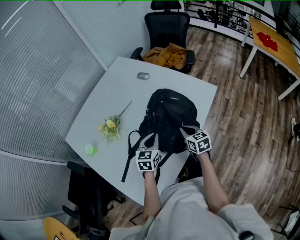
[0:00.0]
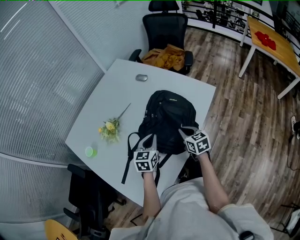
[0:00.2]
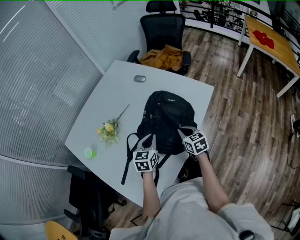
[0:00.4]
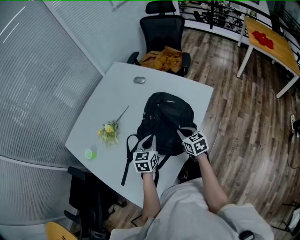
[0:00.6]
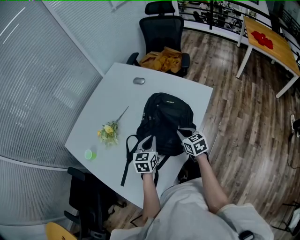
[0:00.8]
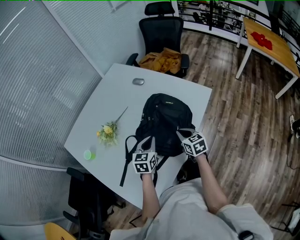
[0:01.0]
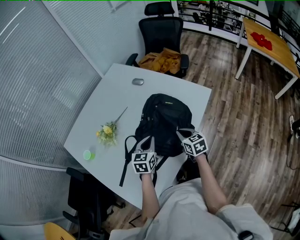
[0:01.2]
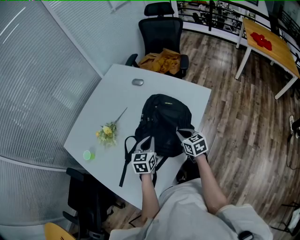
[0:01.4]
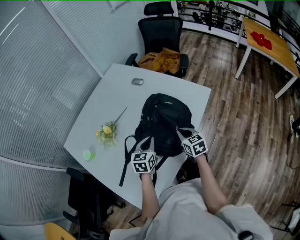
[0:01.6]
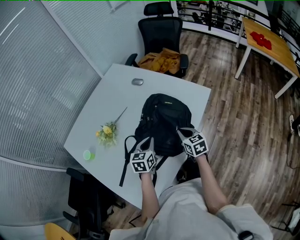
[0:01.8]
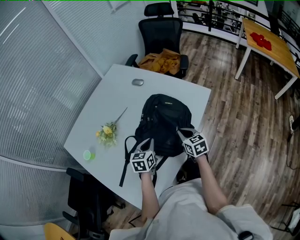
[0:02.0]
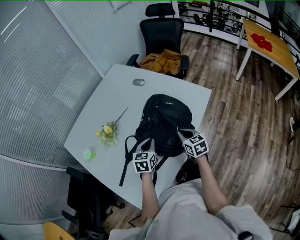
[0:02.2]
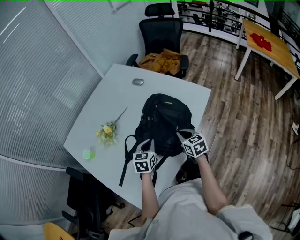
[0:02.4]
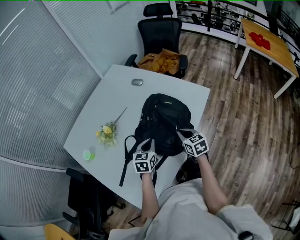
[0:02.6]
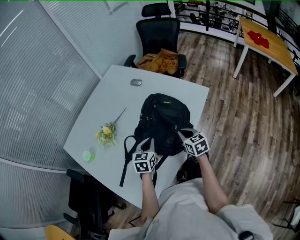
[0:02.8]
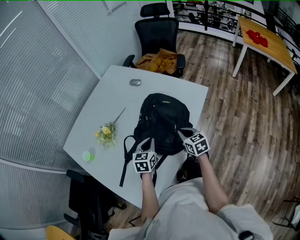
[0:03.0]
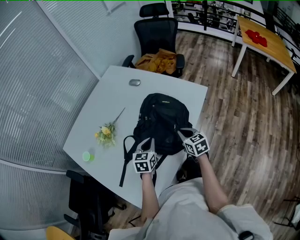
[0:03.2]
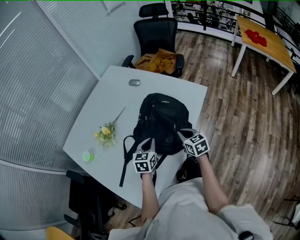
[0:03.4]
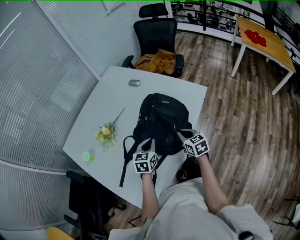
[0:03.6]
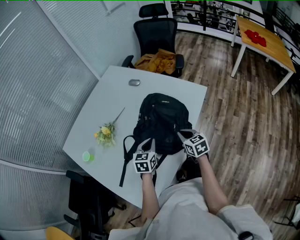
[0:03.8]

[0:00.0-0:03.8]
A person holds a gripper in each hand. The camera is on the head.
0:00.0 to 0:01.2: The two grippers keep their place.
0:01.2 to 0:03.8: The grippers move only a little.

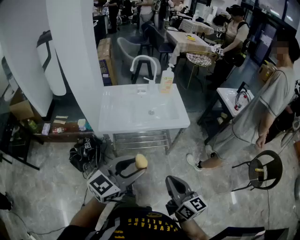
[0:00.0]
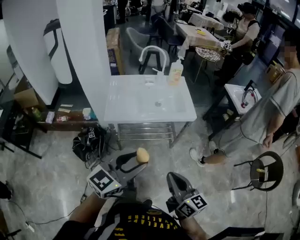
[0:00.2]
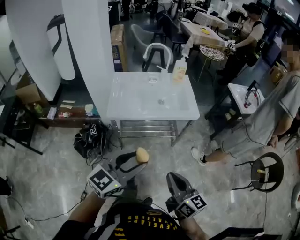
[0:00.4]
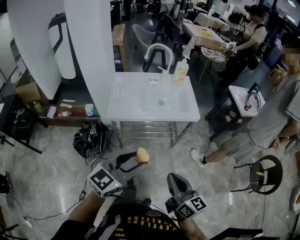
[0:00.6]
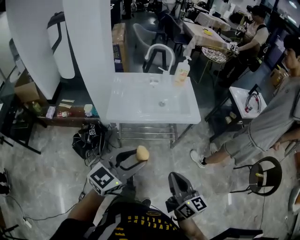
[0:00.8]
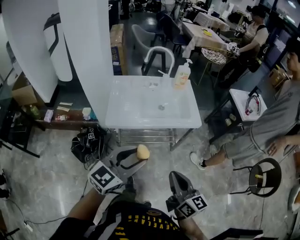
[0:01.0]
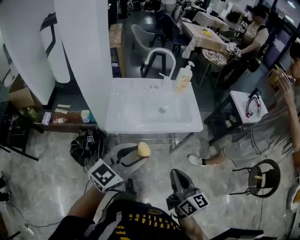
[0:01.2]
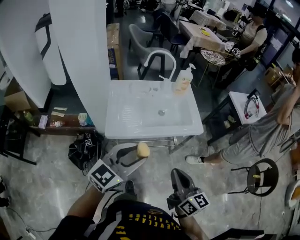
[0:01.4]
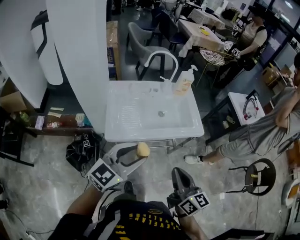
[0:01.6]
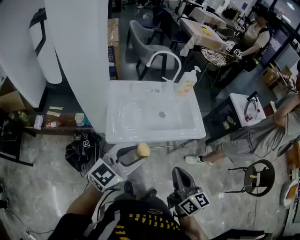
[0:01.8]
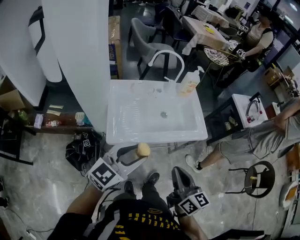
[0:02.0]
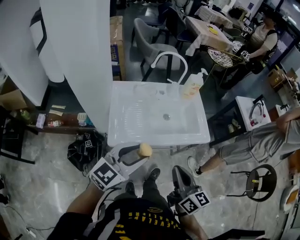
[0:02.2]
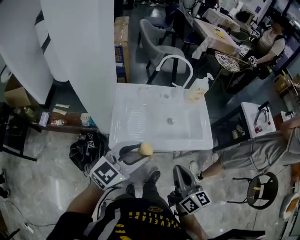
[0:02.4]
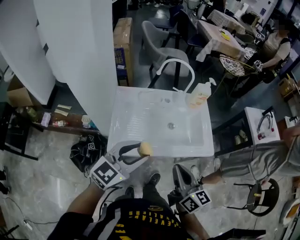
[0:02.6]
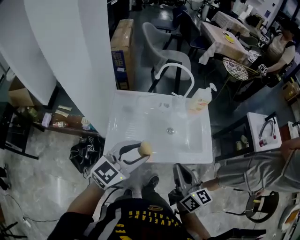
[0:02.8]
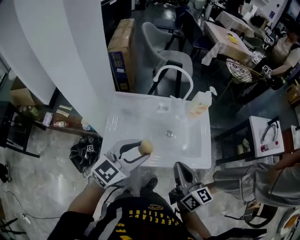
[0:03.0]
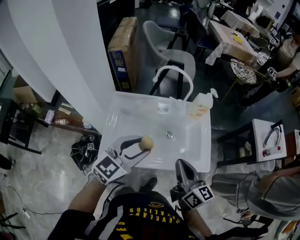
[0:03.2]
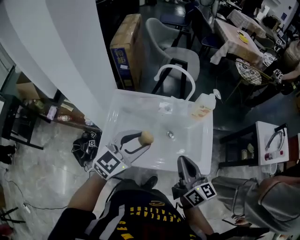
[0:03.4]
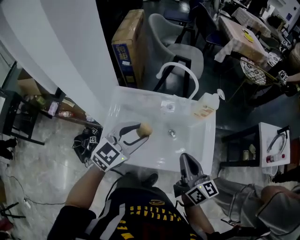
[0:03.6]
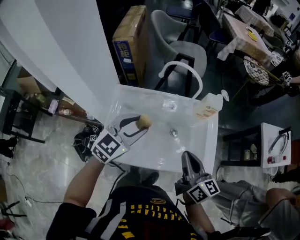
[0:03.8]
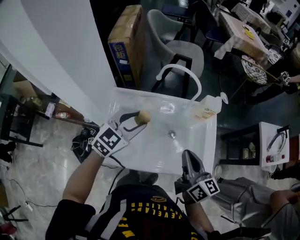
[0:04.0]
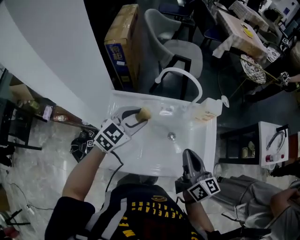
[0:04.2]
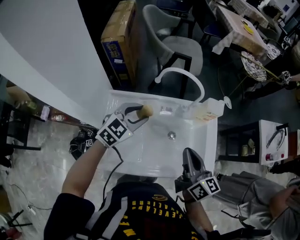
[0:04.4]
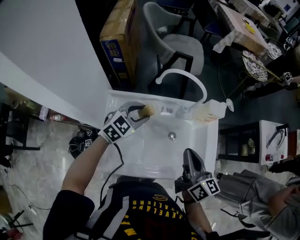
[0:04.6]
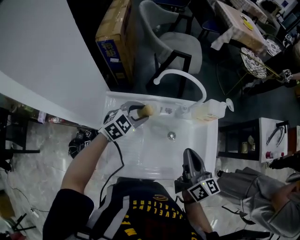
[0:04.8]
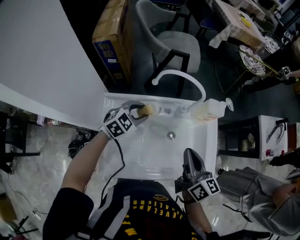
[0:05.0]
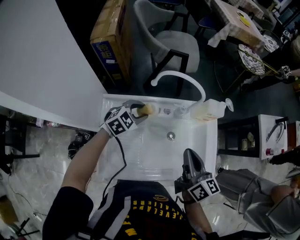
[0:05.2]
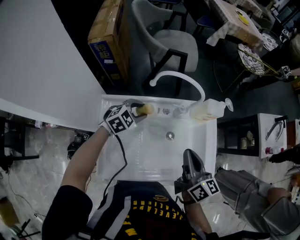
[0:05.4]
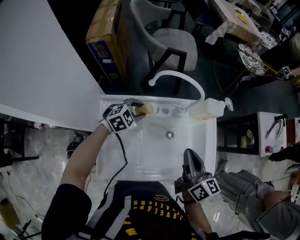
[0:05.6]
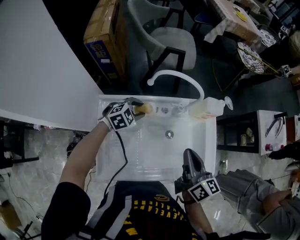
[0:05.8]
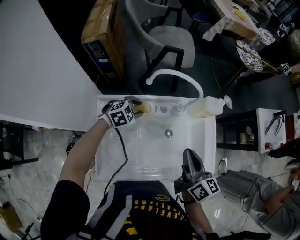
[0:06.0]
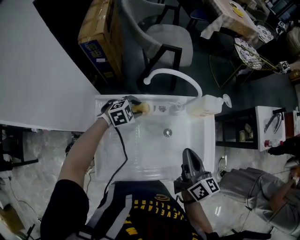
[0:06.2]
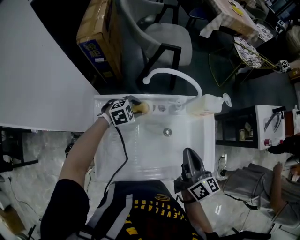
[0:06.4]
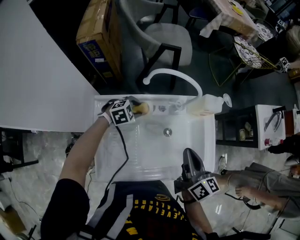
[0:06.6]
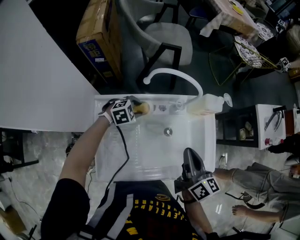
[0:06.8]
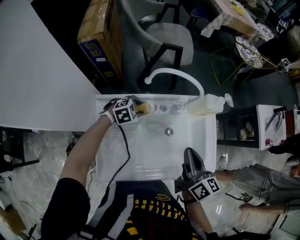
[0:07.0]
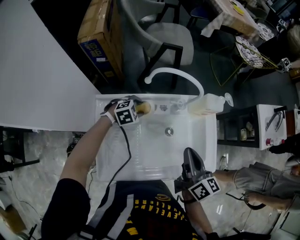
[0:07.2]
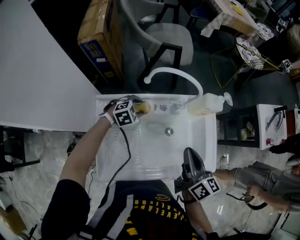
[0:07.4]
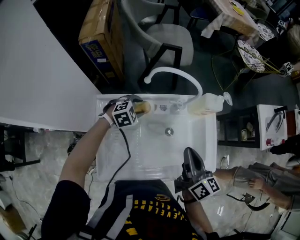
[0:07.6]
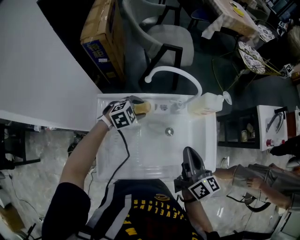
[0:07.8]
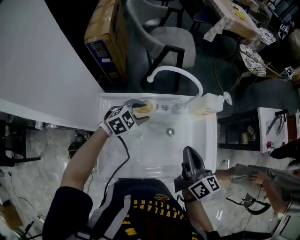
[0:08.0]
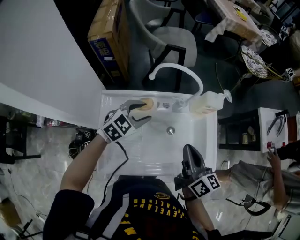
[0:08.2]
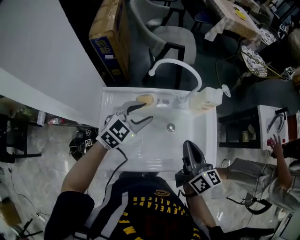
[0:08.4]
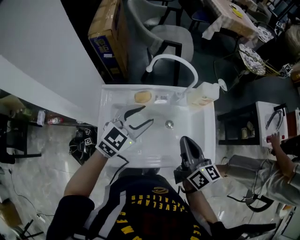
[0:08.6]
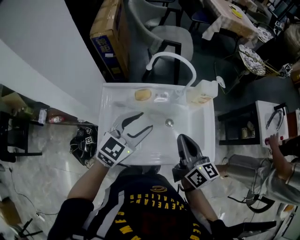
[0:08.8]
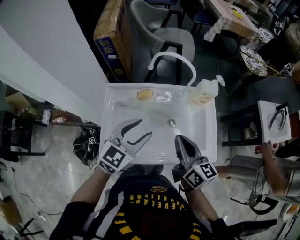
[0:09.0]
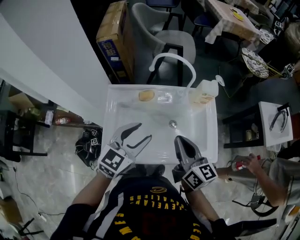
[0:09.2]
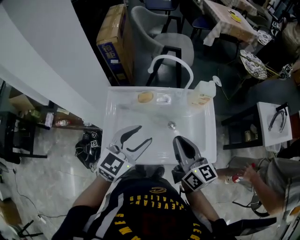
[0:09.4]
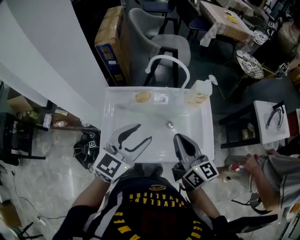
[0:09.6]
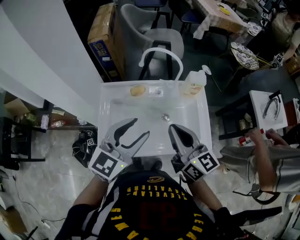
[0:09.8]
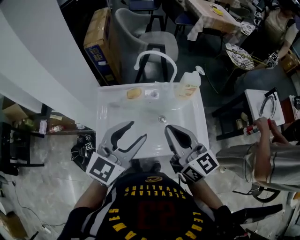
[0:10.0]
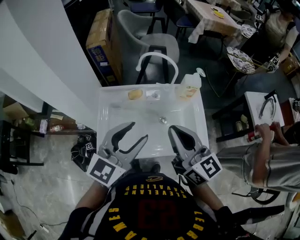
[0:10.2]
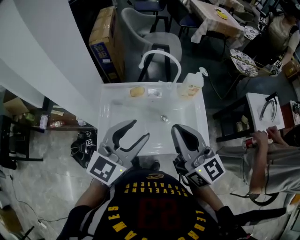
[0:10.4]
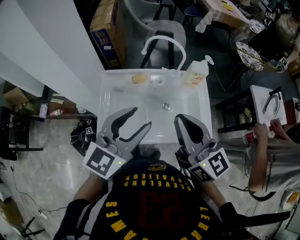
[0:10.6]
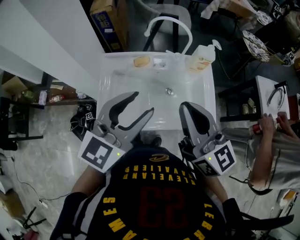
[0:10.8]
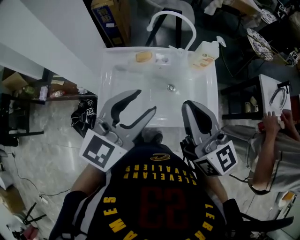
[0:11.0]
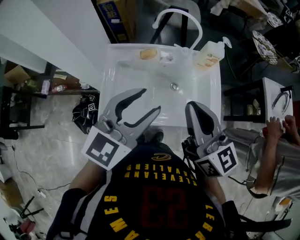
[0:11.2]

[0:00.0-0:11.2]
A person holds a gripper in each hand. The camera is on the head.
0:00.0 to 0:01.6: Both grippers travel together forward and to the left, about 20 cm.
0:01.6 to 0:03.2: Both grippers move forward, about 25 cm.
0:03.2 to 0:04.8: The right gripper heads forward, covering roughly 15 cm; the left gripper goes about 30 cm forward and downward, and changes its angle by roughly 30 degrees.
0:04.8 to 0:06.4: The left gripper moves downward, some 10 cm, and rotates about 20 degrees.
0:06.4 to 0:08.0: The left gripper goes some 10 cm upward.
0:08.0 to 0:09.6: The right gripper travels backward and upward by approximately 10 cm. Meanwhile the left gripper is displaced upward and backward by roughly 30 cm, and tilts its fingers about 30 degrees upward.
0:09.6 to 0:11.2: The left gripper moves roughly 5 cm; the right gripper goes some 10 cm upward.

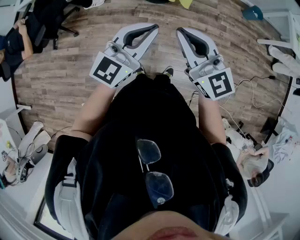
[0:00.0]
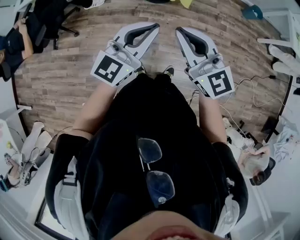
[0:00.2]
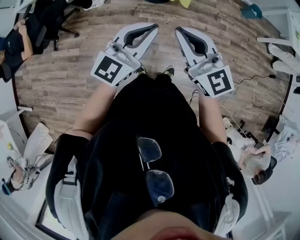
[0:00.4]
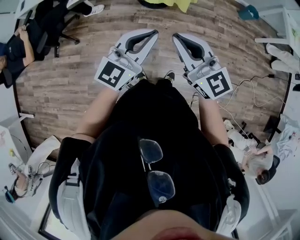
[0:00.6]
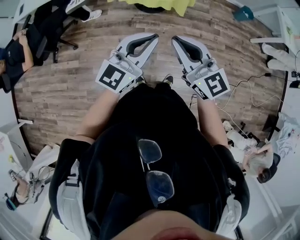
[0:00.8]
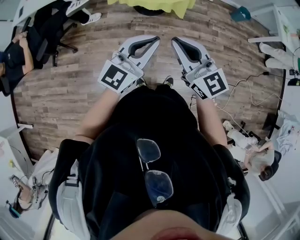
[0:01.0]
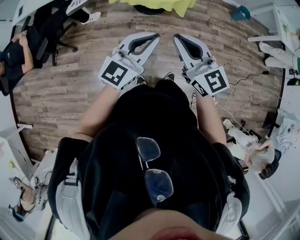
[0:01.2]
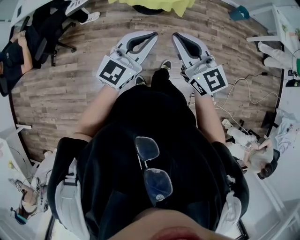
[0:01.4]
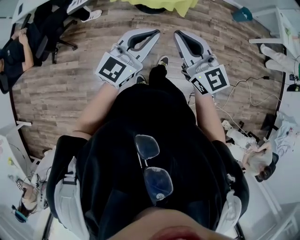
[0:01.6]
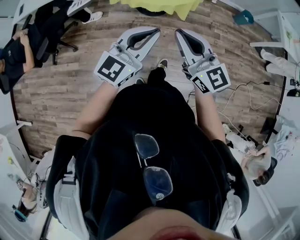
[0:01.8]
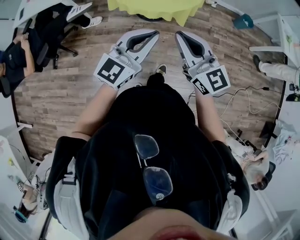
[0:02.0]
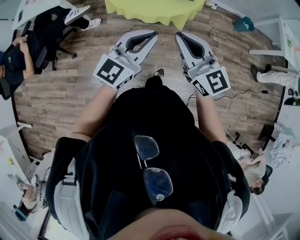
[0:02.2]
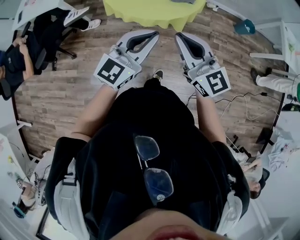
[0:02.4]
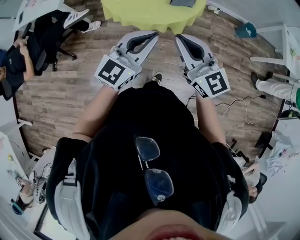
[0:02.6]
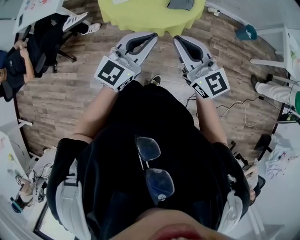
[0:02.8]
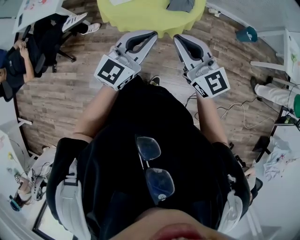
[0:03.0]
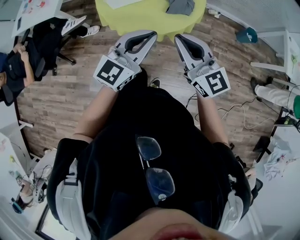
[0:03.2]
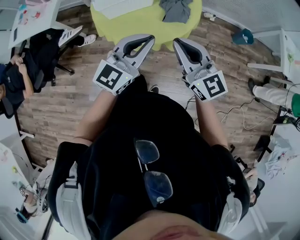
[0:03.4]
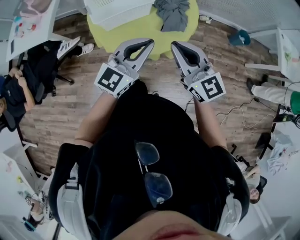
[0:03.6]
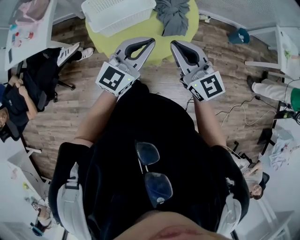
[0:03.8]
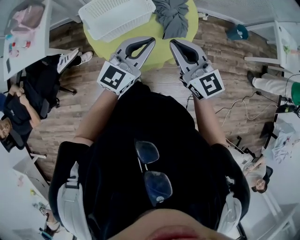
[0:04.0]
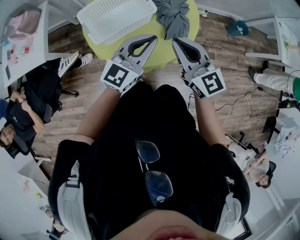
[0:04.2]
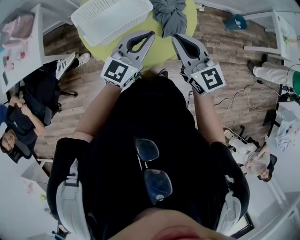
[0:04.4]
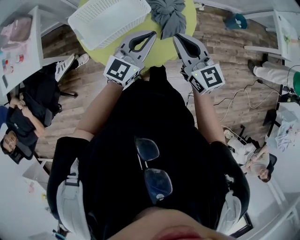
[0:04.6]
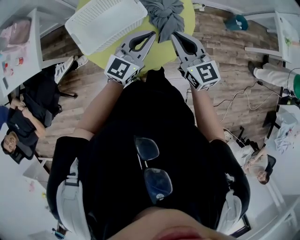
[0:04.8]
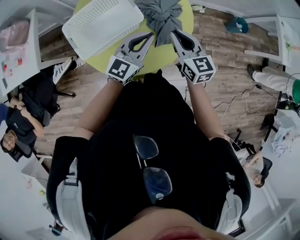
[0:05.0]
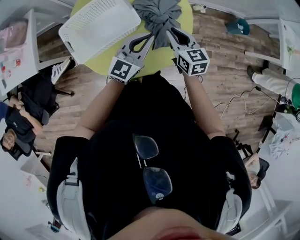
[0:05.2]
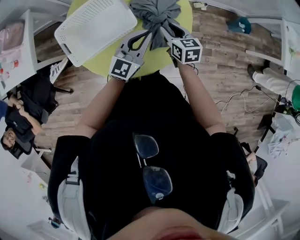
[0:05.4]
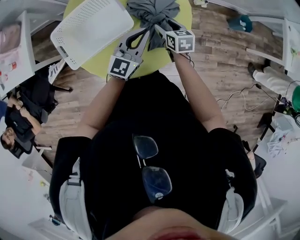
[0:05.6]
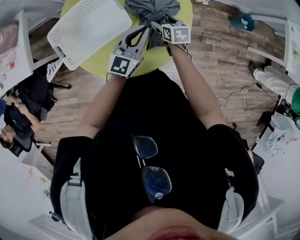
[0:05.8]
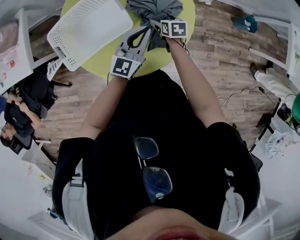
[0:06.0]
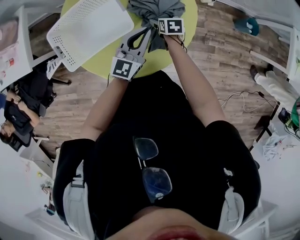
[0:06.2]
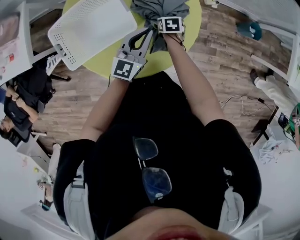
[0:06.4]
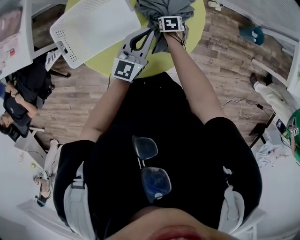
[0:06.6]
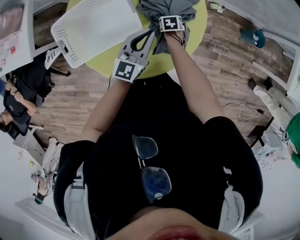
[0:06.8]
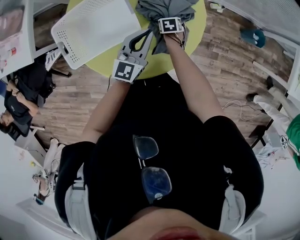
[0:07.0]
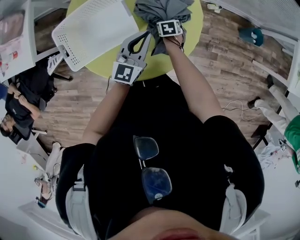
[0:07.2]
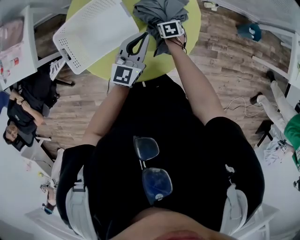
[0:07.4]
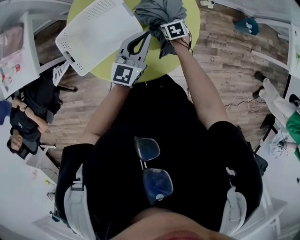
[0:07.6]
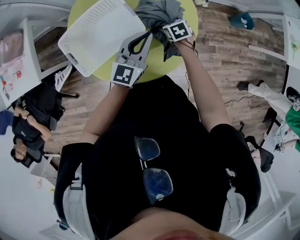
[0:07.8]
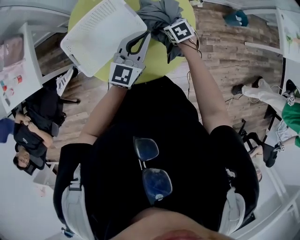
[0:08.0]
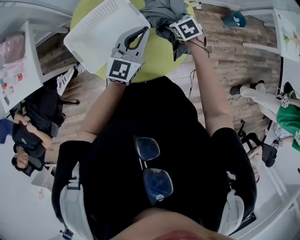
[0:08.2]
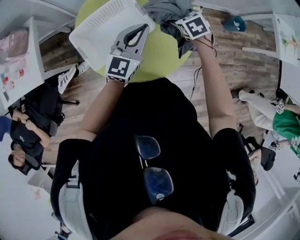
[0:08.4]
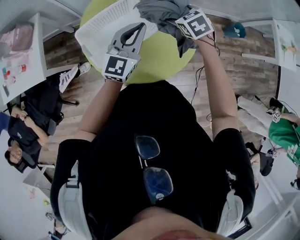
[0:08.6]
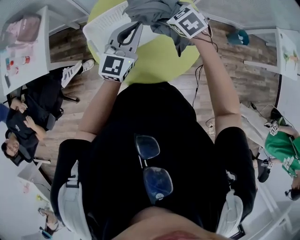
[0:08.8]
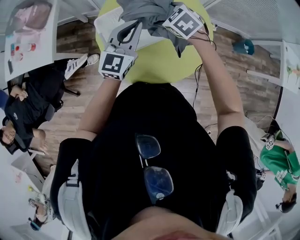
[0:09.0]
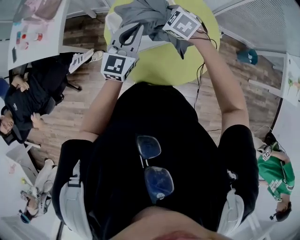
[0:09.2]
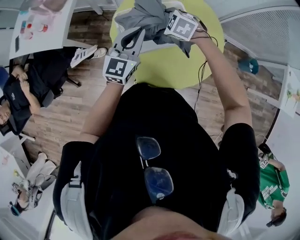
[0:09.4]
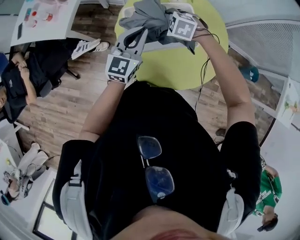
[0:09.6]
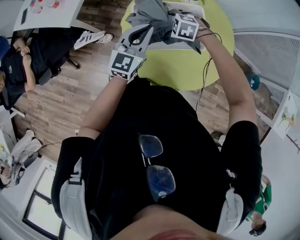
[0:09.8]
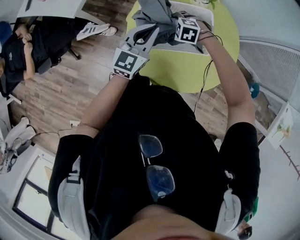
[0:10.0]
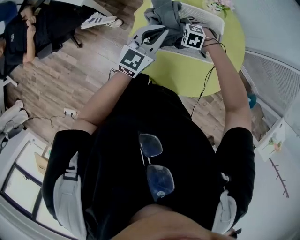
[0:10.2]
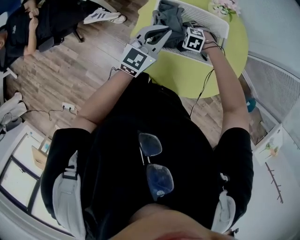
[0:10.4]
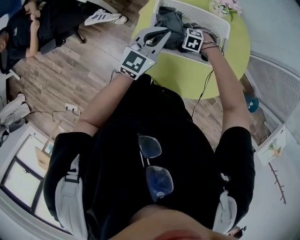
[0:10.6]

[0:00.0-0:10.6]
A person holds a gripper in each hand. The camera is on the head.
0:00.0 to 0:01.6: The grippers make only small movements.
0:01.6 to 0:03.0: Both grippers move forward and to the right, some 25 cm.
0:03.0 to 0:04.6: Both grippers move forward, roughly 25 cm. The right gripper turns by roughly 20 degrees.
0:04.6 to 0:06.0: The right gripper shifts approximately 40 cm downward and forward, points its fingers some 40 degrees further downward, and opens up; the left gripper shifts roughly 20 cm forward, downward and to the right.
0:06.0 to 0:07.6: The right gripper travels downward and back again, about 10 cm each way.
0:07.6 to 0:09.0: The left gripper heads to the left and upward, covering roughly 20 cm; the right gripper is displaced upward and to the left by roughly 35 cm, and rotates around the line of its fingers by some 40 degrees, counterclockwise from behind.
0:09.0 to 0:10.6: The left gripper moves roughly 15 cm, and changes its angle by approximately 20 degrees; the right gripper travels downward by approximately 25 cm, and rolls counterclockwise, seen from behind, by roughly 50 degrees.
